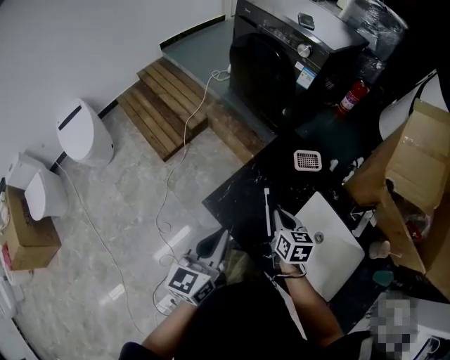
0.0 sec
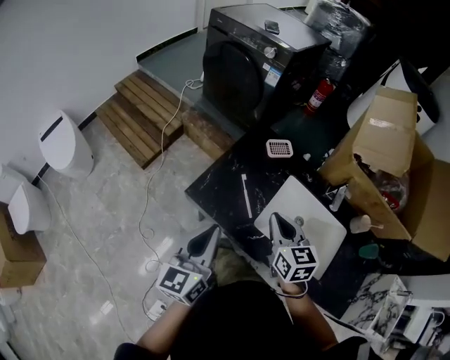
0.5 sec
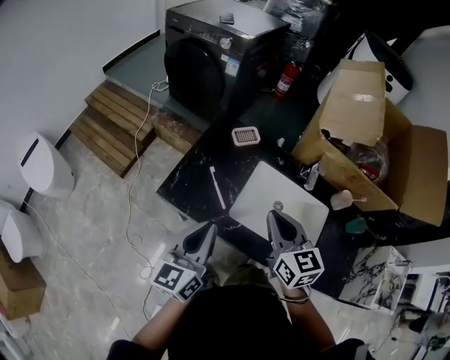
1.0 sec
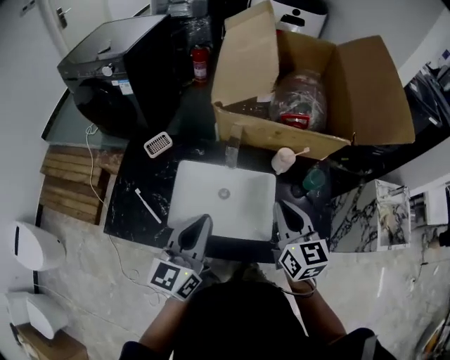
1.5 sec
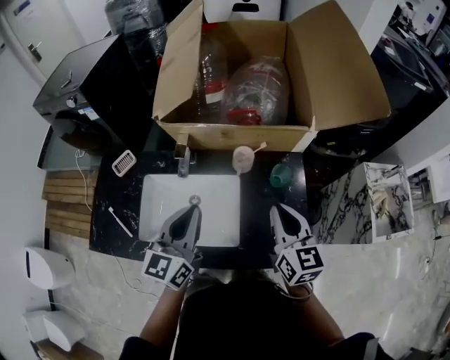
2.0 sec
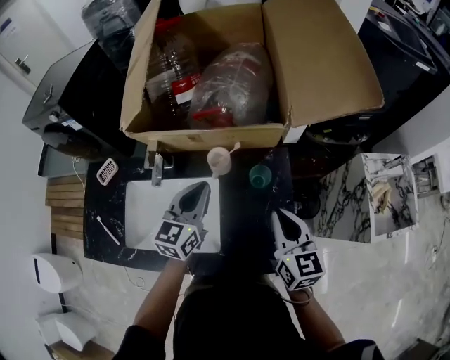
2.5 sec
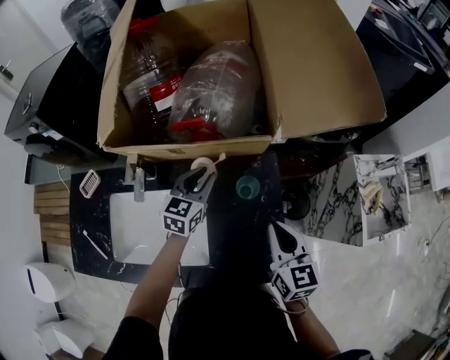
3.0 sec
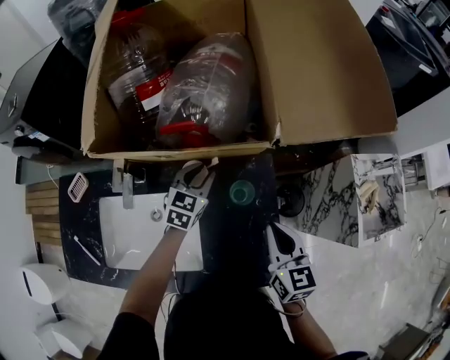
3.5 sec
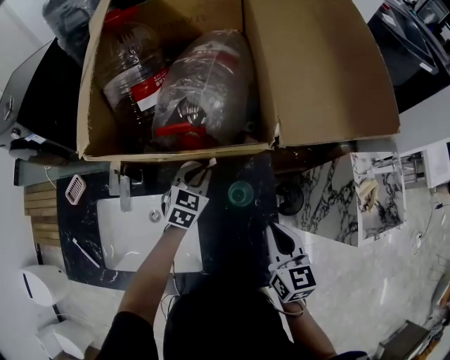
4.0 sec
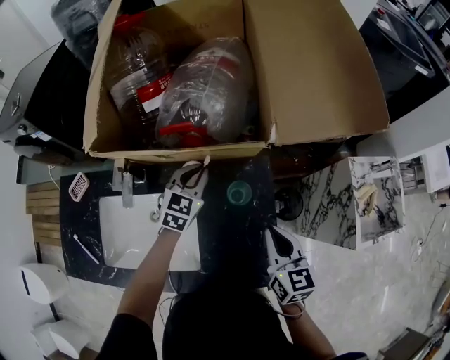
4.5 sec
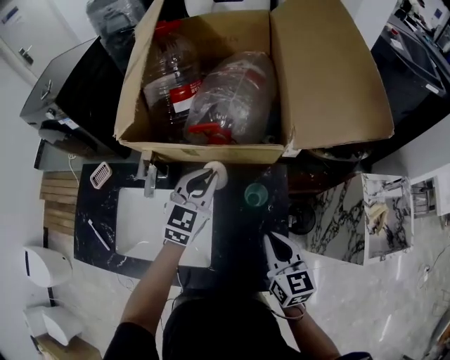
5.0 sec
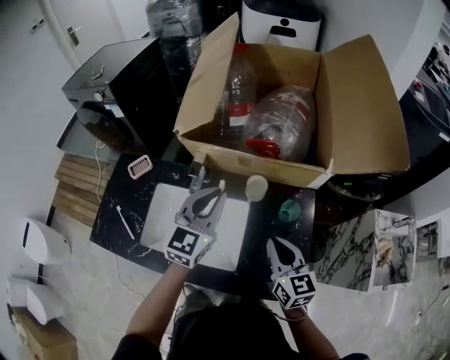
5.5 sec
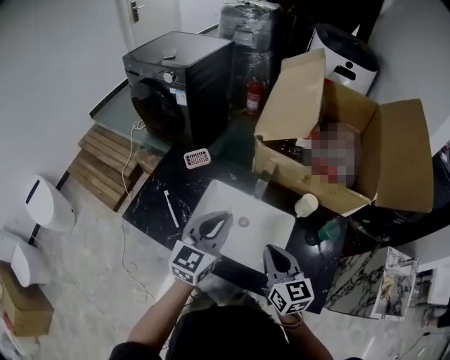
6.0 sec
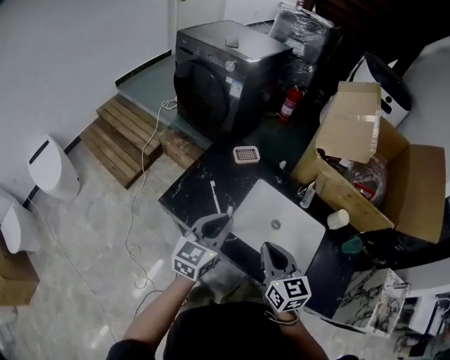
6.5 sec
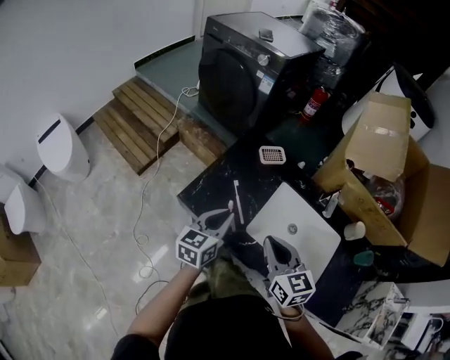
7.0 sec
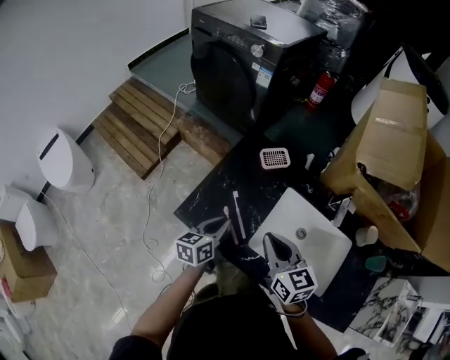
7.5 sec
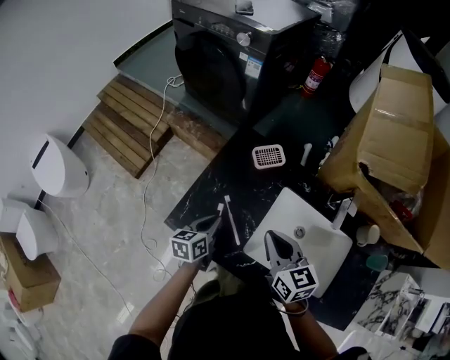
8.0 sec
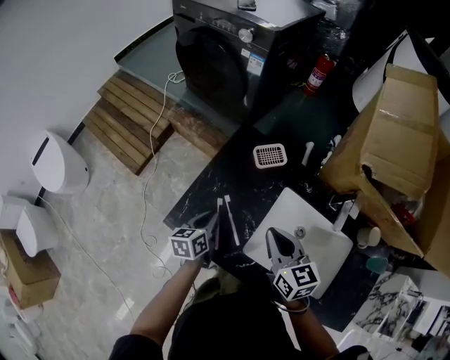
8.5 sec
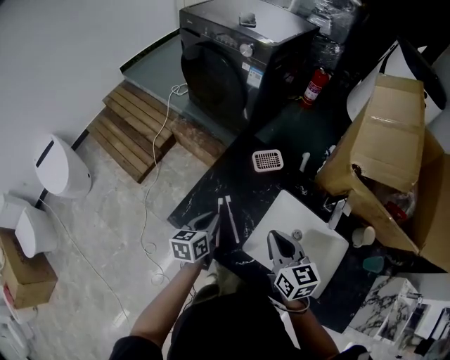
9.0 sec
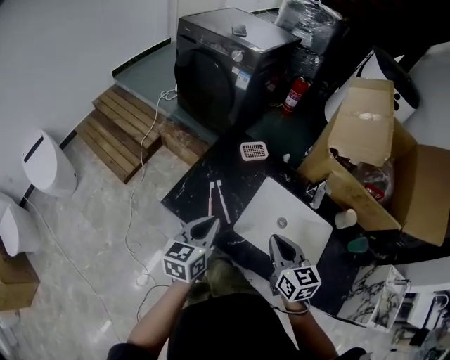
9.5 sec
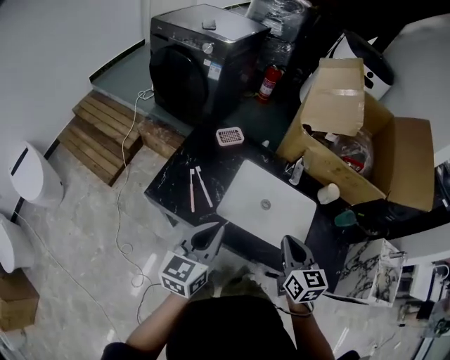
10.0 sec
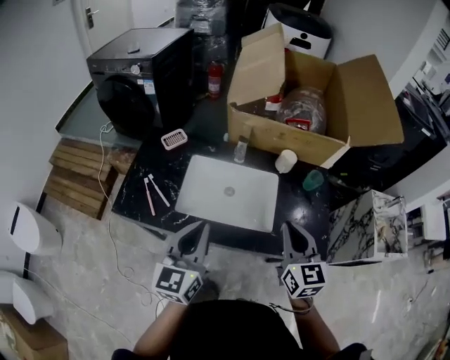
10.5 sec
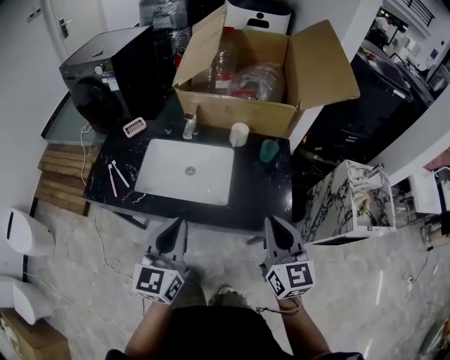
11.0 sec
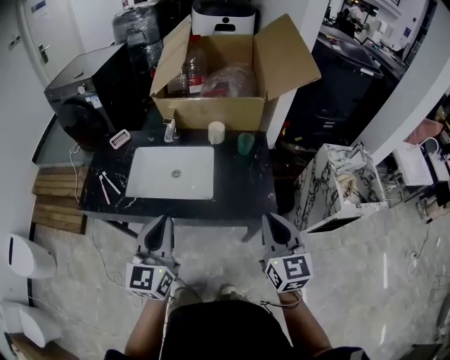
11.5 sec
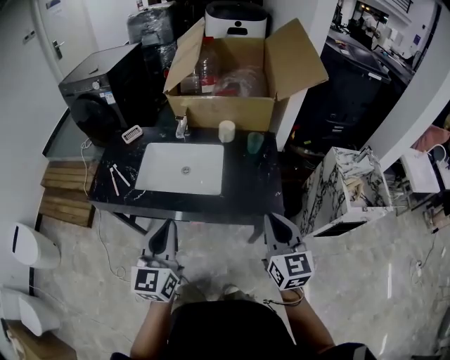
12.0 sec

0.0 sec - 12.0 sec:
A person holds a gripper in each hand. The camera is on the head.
0.0 sec - 2.0 sec: The pair of grippers is taken some 60 cm. The right gripper changes its angle by some 50 degrees. The left gripper turns by approximately 40 degrees.
2.0 sec - 4.0 sec: The left gripper goes approximately 40 cm forward, downward and to the right, and tilts its fingers approximately 30 degrees downward. Meanwhile the right gripper is displaced to the right, downward and forward by about 20 cm.
4.0 sec - 6.0 sec: The left gripper moves some 50 cm, and tilts its fingers roughly 30 degrees upward; the right gripper ends up roughly 35 cm from where it was, and turns by approximately 30 degrees.
6.0 sec - 8.0 sec: The left gripper moves to the left and downward, about 40 cm, and swivels approximately 50 degrees. Meanwhile the right gripper goes some 30 cm to the left and forward.
8.0 sec - 10.0 sec: The left gripper goes some 30 cm upward and backward, and turns by some 30 degrees, while the right gripper shifts about 25 cm backward and to the right, and changes its angle by roughly 20 degrees.
10.0 sec - 12.0 sec: Both grippers travel together to the right and backward, roughly 35 cm. The right gripper rotates approximately 20 degrees.

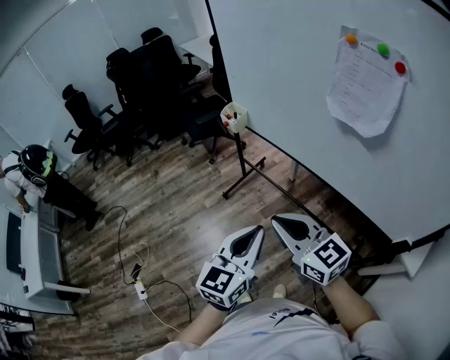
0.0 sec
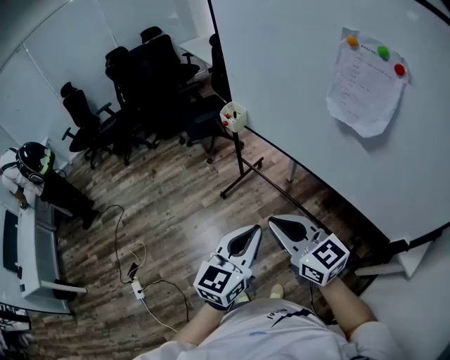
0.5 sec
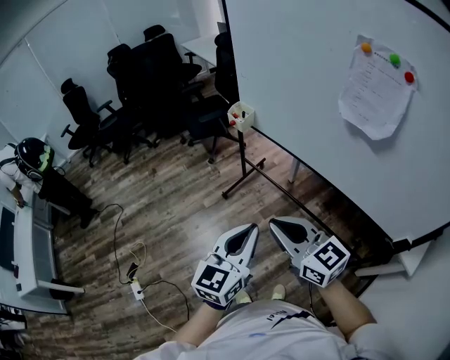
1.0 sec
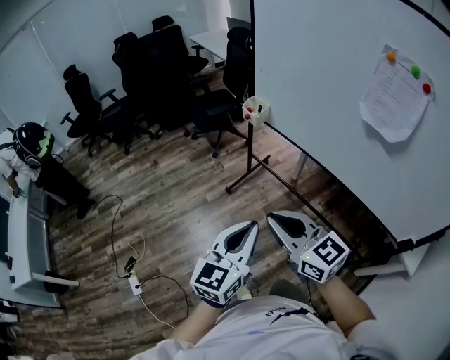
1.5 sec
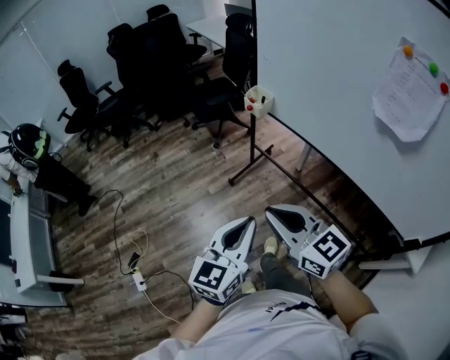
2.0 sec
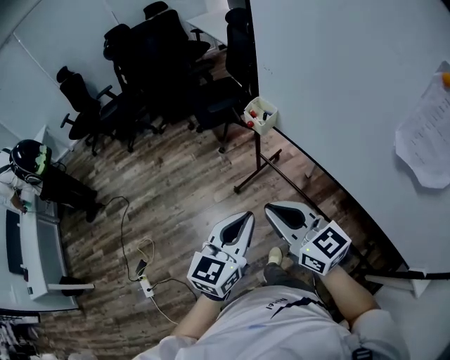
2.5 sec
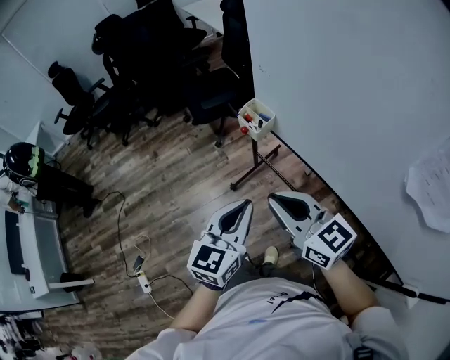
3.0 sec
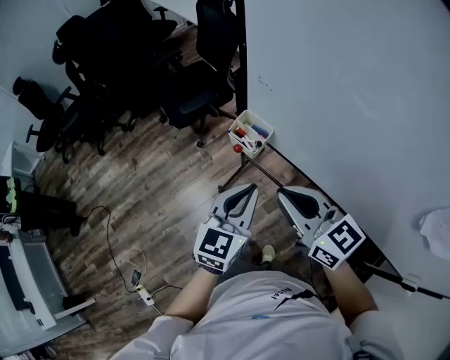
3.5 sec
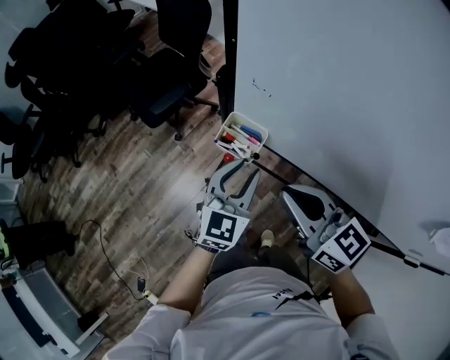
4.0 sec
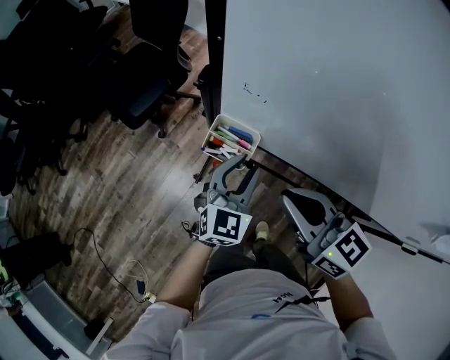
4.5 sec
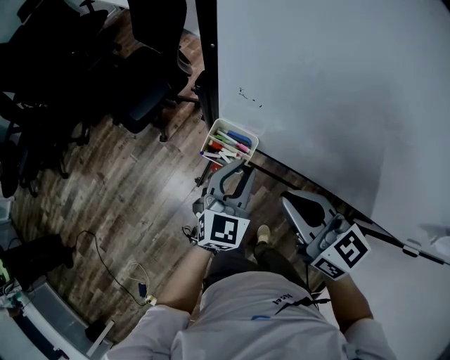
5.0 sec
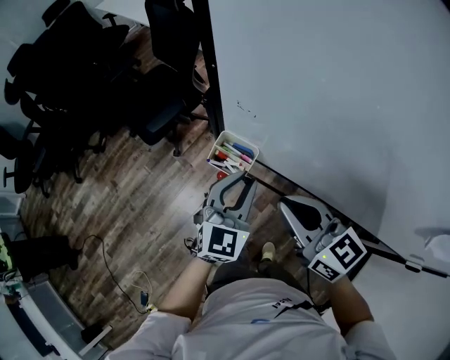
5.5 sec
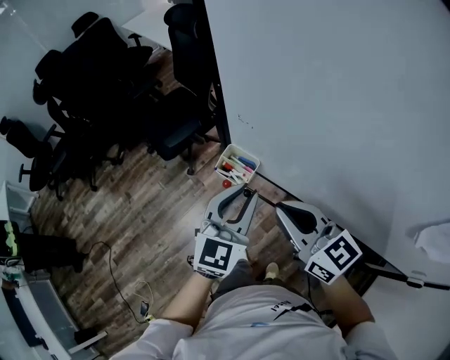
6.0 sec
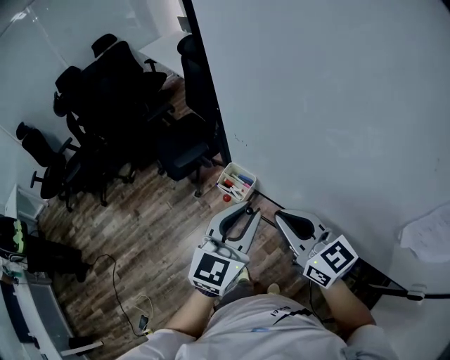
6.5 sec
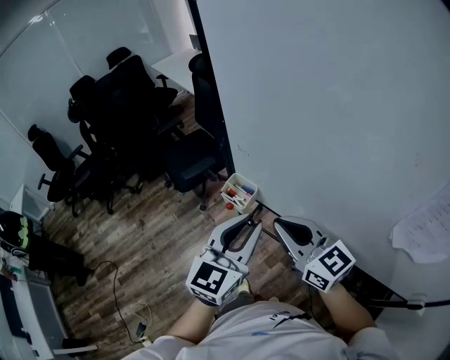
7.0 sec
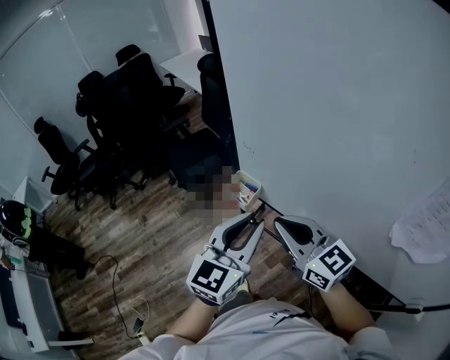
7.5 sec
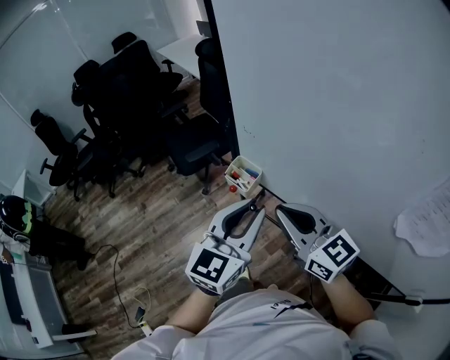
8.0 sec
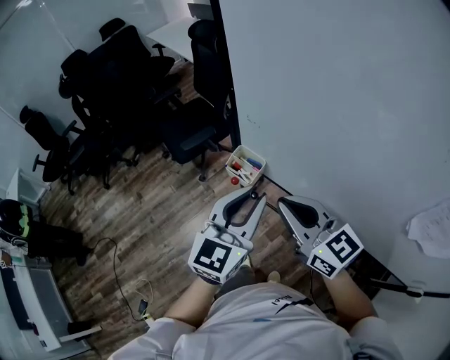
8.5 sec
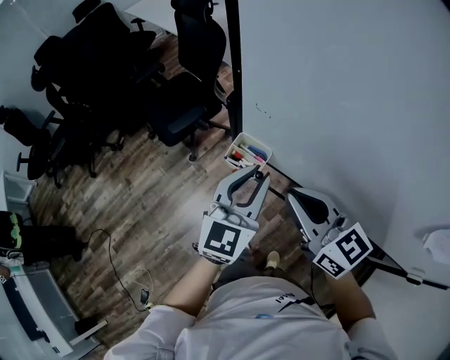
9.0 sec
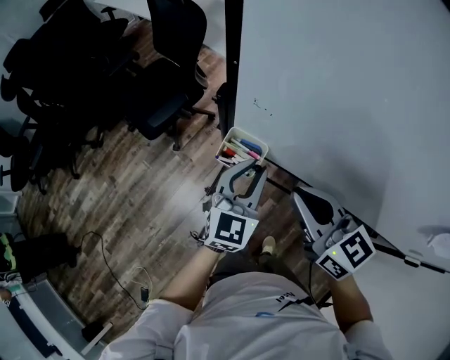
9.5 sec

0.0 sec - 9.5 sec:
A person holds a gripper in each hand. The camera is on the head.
0.0 sec - 2.0 sec: Both grippers travel together to the left, approximately 15 cm.
2.0 sec - 4.0 sec: The pair of grippers is taken forward, roughly 50 cm. The left gripper swivels roughly 20 degrees, and opens its fingers, while the right gripper turns by roughly 20 degrees.
5.5 sec - 7.5 sec: The left gripper shifts some 25 cm upward and backward. Meanwhile the right gripper goes some 15 cm upward and backward.
7.5 sec - 9.5 sec: The left gripper travels downward and forward by about 25 cm, while the right gripper travels forward and downward by approximately 15 cm, and swivels some 20 degrees.

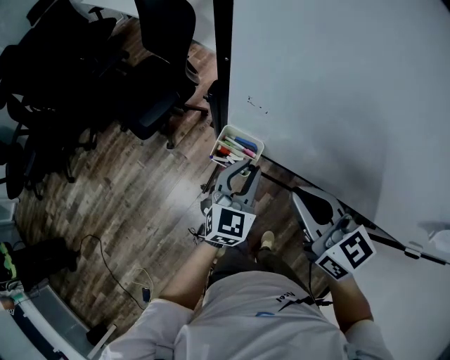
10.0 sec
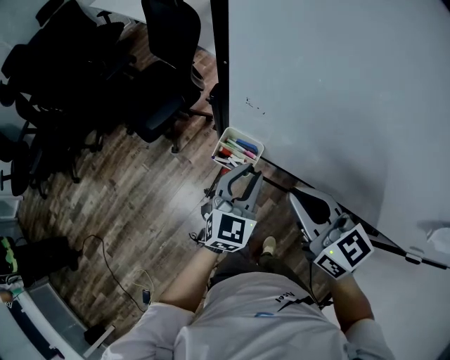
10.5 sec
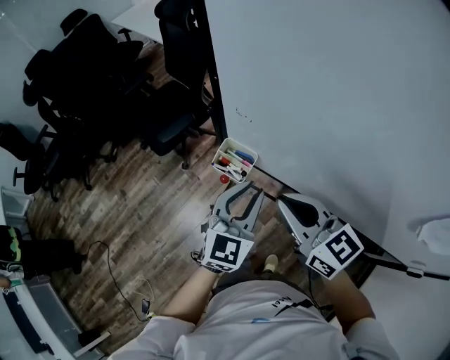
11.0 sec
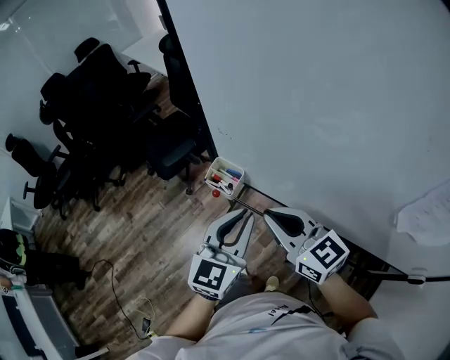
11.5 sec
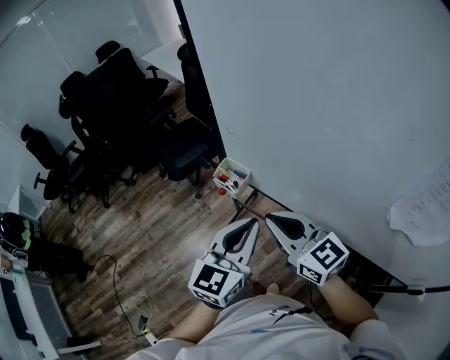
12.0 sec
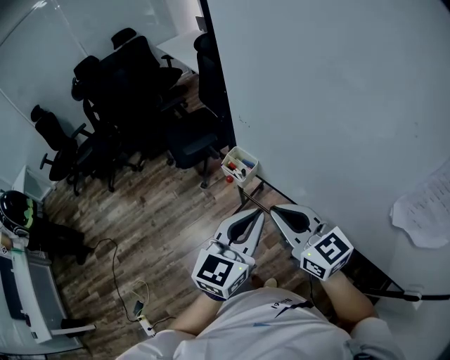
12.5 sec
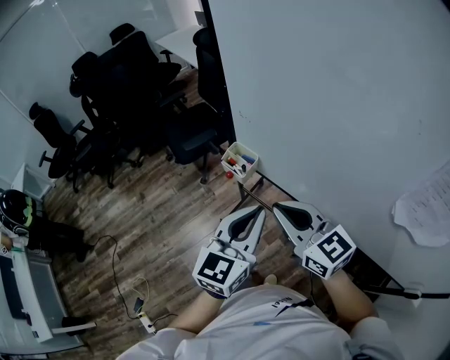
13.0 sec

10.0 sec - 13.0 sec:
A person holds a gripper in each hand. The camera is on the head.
10.0 sec - 11.5 sec: The left gripper goes roughly 20 cm upward and backward. Meanwhile the right gripper heads backward and upward, covering about 10 cm.
11.5 sec - 13.0 sec: The grippers both shift backward by some 5 cm.

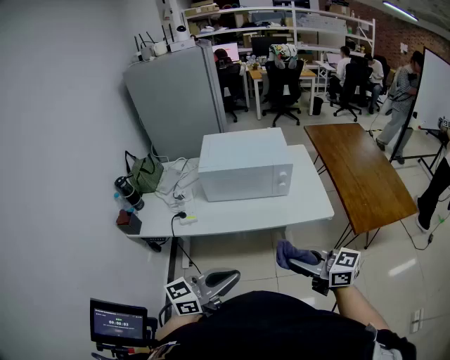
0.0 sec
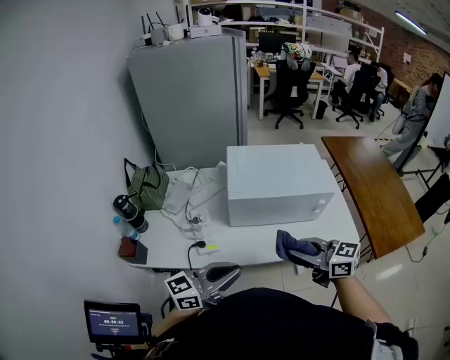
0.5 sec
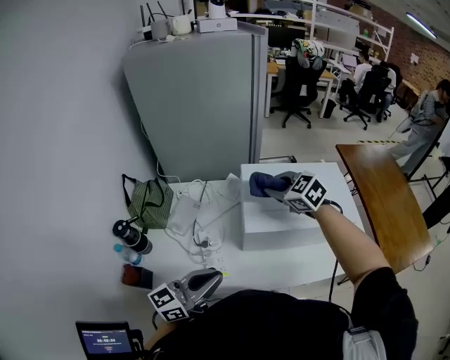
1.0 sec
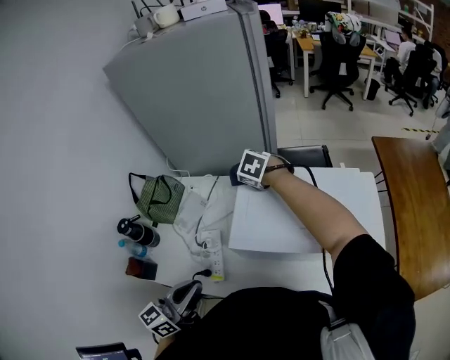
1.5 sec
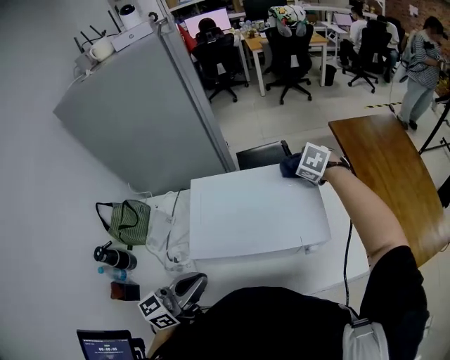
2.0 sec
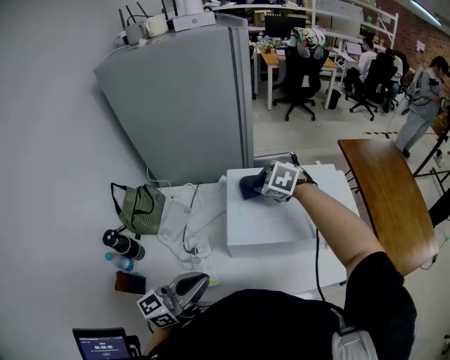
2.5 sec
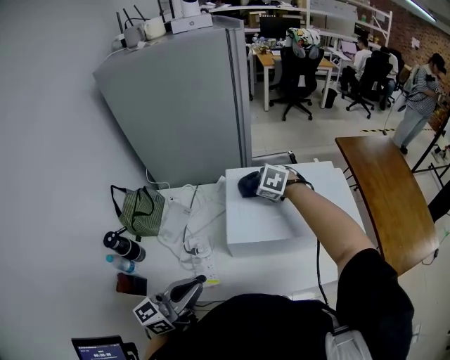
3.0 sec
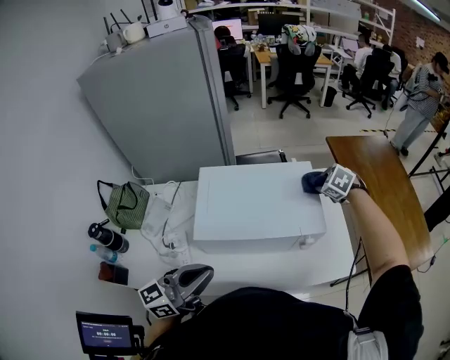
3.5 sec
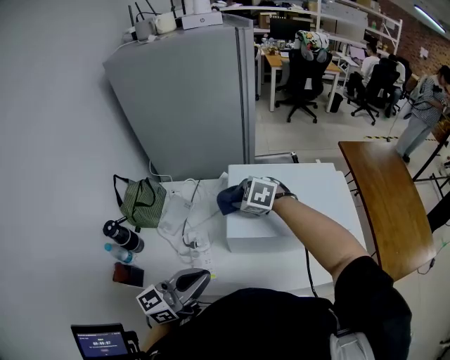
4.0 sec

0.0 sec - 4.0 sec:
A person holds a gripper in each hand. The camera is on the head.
0.0 sec - 2.0 sec: The pair of grippers is taken forward, some 60 cm. The right gripper angles its fingers downward, by about 60 degrees.
2.0 sec - 4.0 sec: The right gripper moves left and right over about 40 cm, changing direction 2 times, and changes its angle by about 30 degrees. The left gripper swings left and right, approximately 15 cm each way, with 2 reversals.
